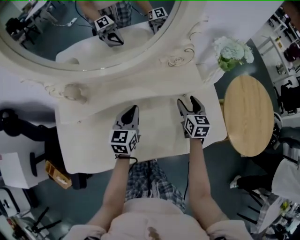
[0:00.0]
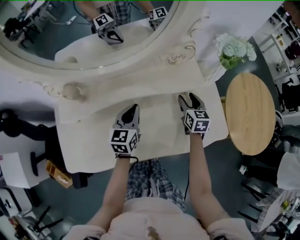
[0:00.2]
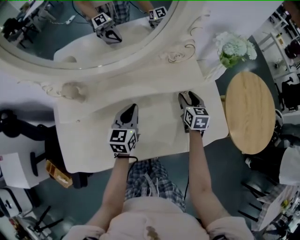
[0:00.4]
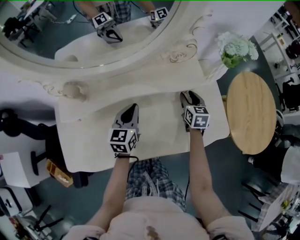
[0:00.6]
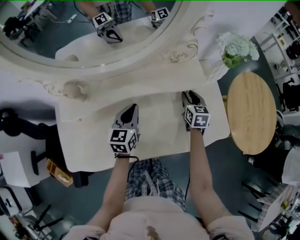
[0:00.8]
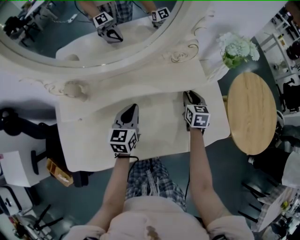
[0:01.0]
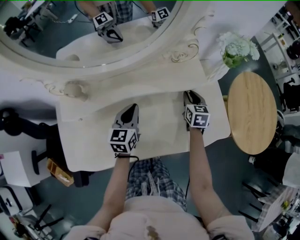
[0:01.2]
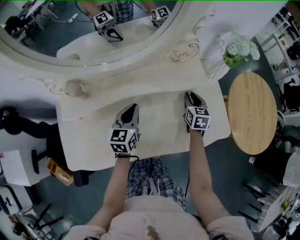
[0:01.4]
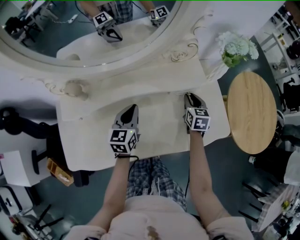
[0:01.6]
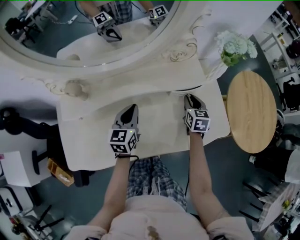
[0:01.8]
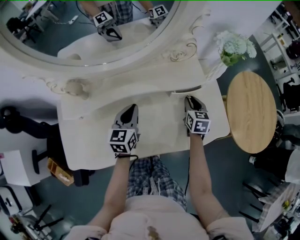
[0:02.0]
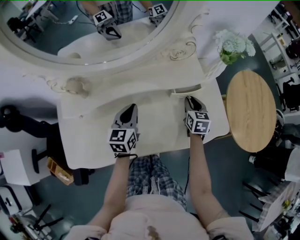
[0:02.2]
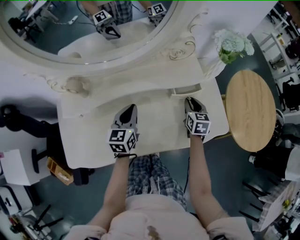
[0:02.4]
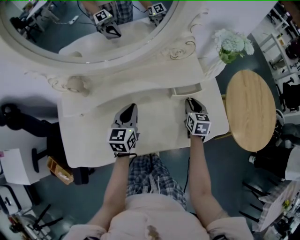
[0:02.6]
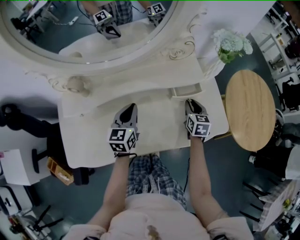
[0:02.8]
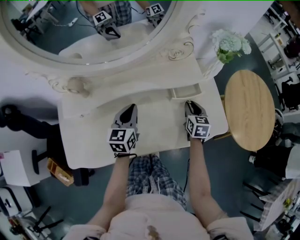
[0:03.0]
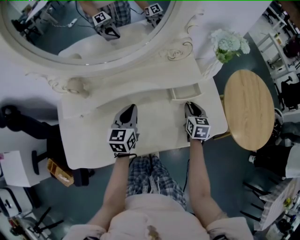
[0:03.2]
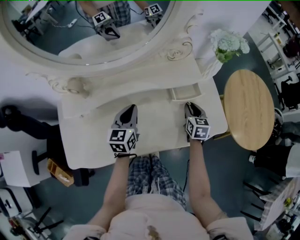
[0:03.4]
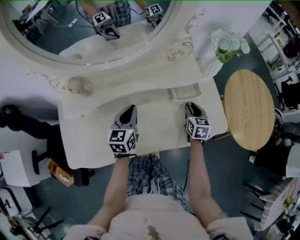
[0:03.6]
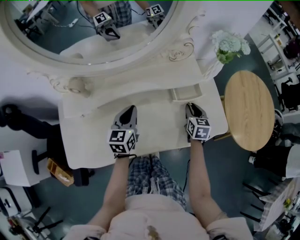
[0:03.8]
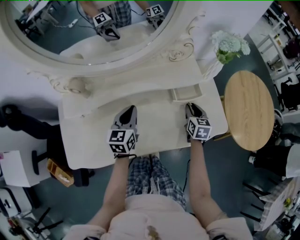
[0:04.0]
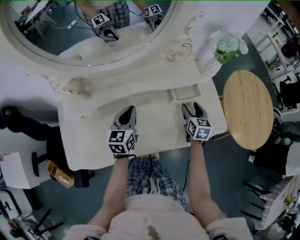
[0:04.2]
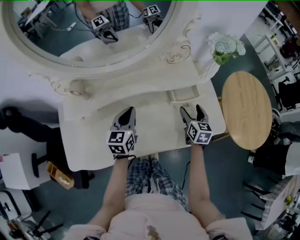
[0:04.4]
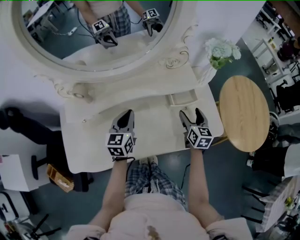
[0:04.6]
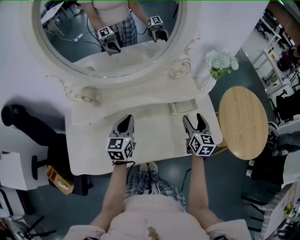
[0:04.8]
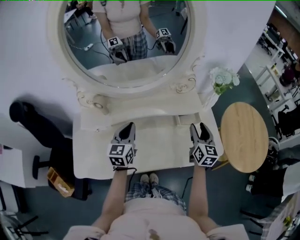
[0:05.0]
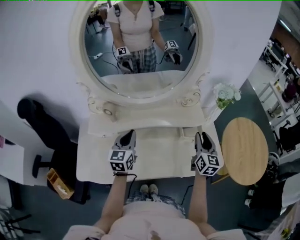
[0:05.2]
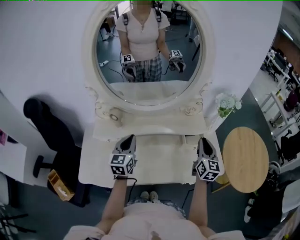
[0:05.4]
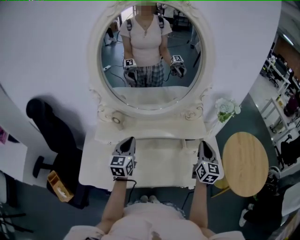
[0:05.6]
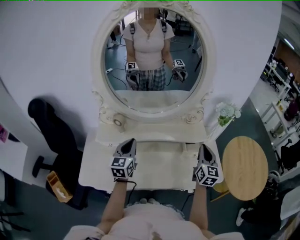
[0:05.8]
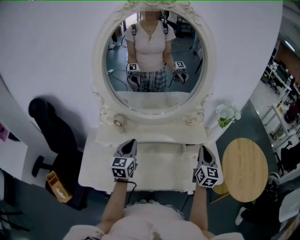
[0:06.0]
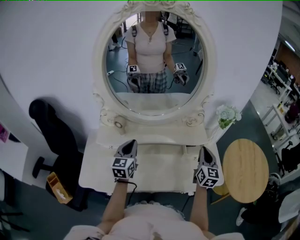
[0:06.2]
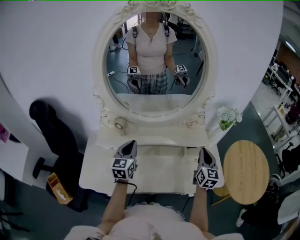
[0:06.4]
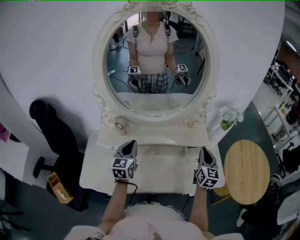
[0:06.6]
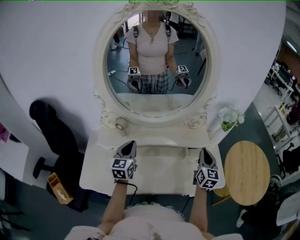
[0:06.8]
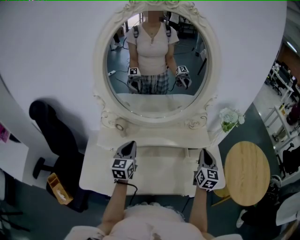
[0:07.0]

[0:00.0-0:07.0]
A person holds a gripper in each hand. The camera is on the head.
0:00.0 to 0:01.4: The right gripper closes up.
0:01.4 to 0:02.8: The right gripper shifts approximately 5 cm backward.
0:02.8 to 0:04.2: The grippers stay close to where they were, moving slightly.
0:04.2 to 0:05.6: The left gripper heads upward, to the left and backward, covering about 15 cm. The right gripper heads upward, covering roughly 20 cm, swivels approximately 30 degrees, and closes.
0:05.6 to 0:07.0: The grippers make only small movements.

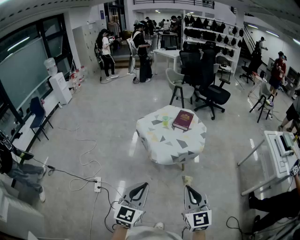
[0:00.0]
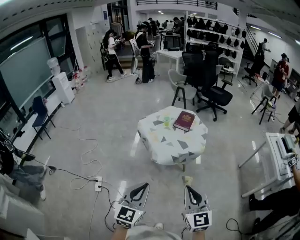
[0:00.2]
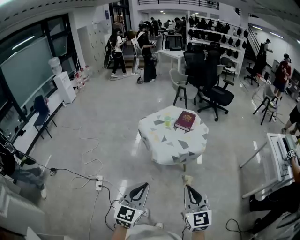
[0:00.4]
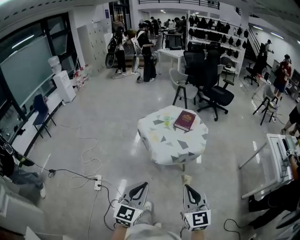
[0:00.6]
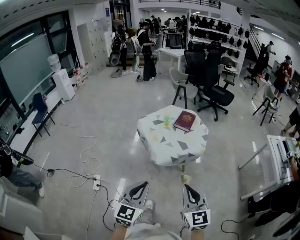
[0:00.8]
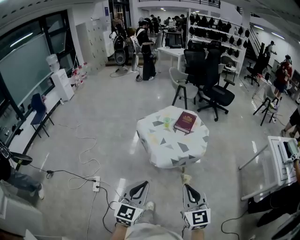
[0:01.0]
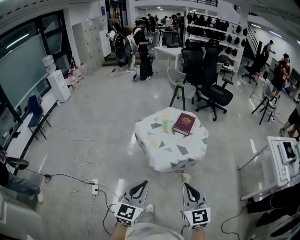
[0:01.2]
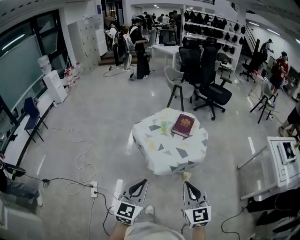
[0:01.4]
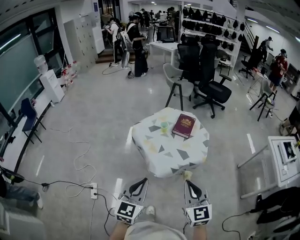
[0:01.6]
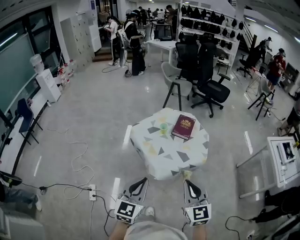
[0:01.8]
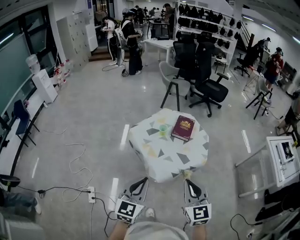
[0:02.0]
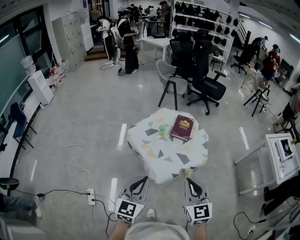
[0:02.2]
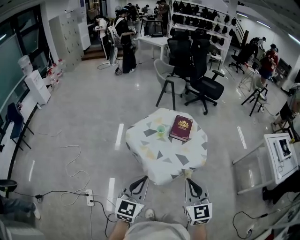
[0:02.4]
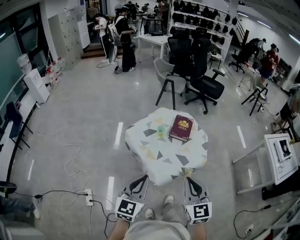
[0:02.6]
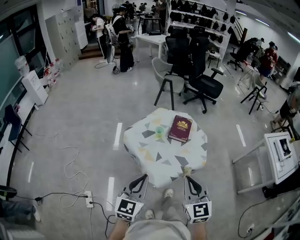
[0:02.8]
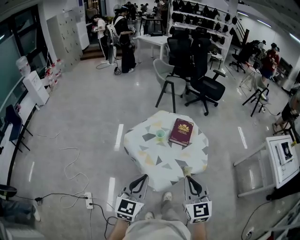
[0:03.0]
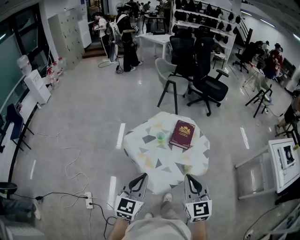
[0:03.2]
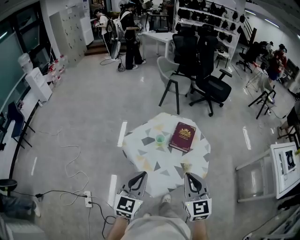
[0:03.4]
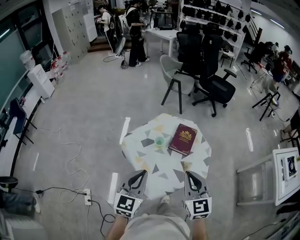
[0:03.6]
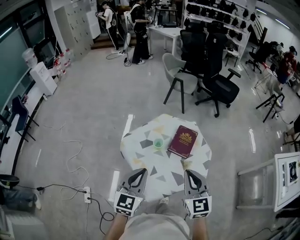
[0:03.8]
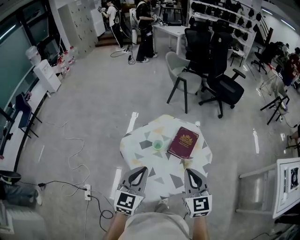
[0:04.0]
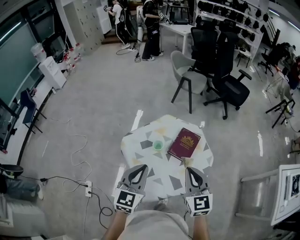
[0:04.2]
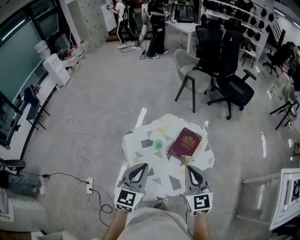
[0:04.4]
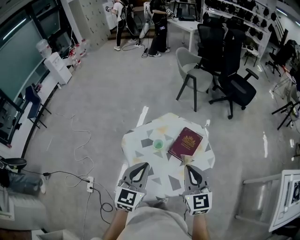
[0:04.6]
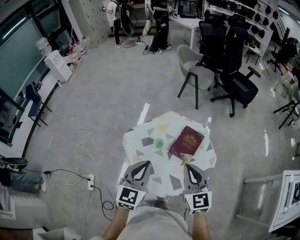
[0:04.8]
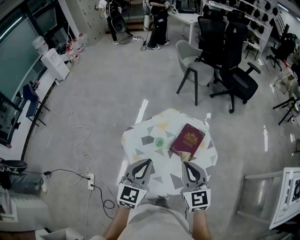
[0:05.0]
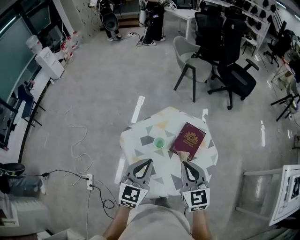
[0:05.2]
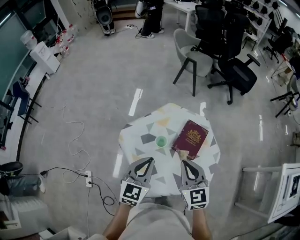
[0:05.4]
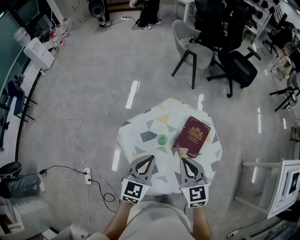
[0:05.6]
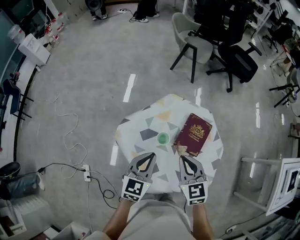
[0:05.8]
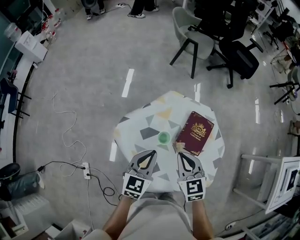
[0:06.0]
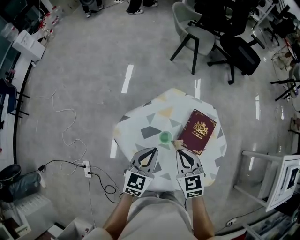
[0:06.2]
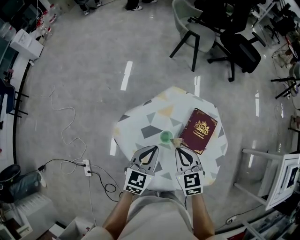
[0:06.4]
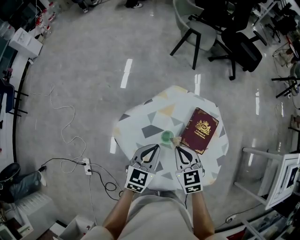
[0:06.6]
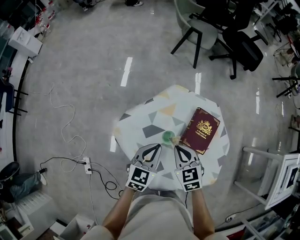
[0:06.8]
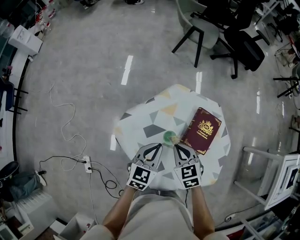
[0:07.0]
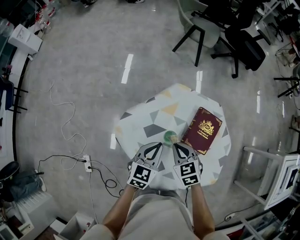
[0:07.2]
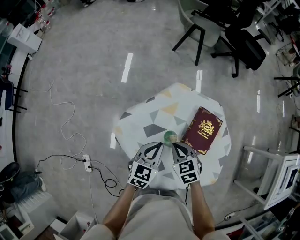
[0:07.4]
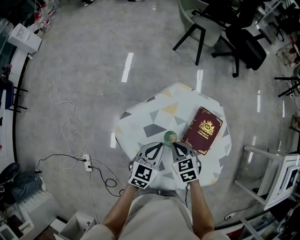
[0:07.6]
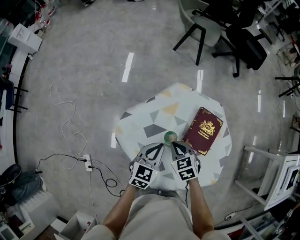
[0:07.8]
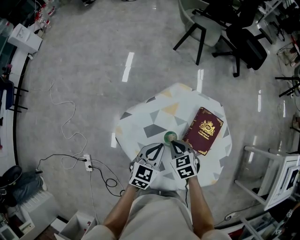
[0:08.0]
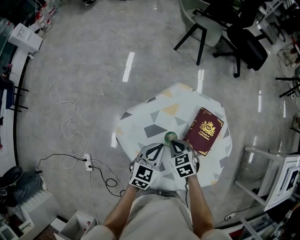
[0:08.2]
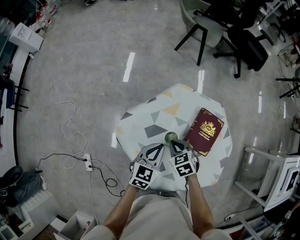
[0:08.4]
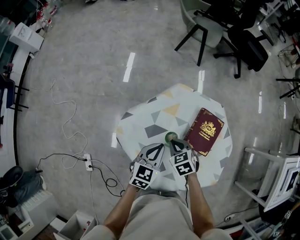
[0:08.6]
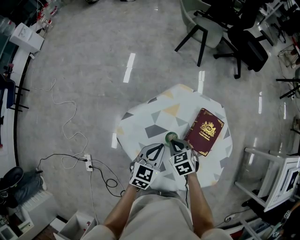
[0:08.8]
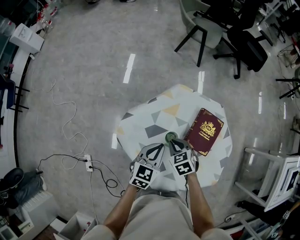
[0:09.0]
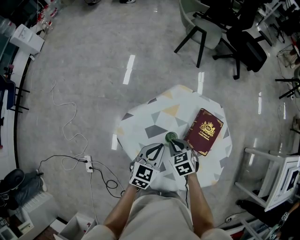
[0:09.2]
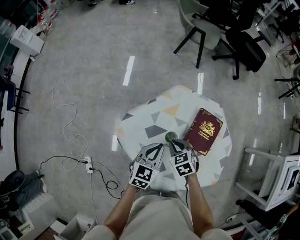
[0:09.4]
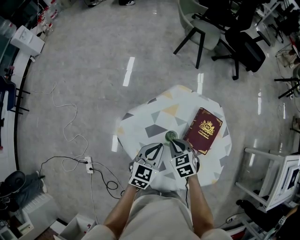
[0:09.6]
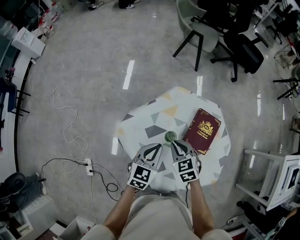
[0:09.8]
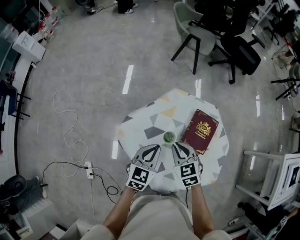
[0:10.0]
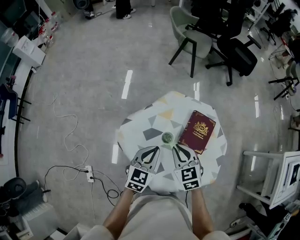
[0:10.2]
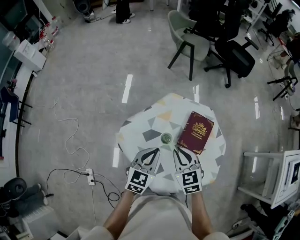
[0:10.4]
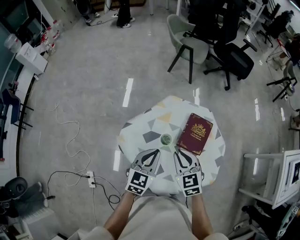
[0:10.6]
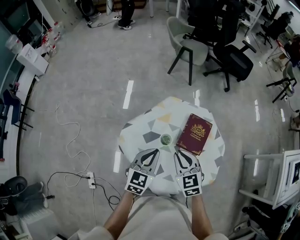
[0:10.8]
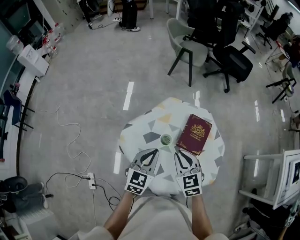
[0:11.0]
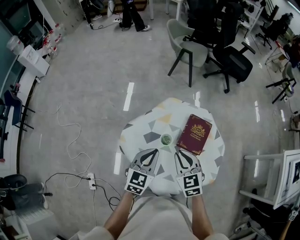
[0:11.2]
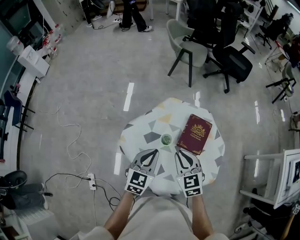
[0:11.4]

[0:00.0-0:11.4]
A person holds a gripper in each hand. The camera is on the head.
0:00.0 to 0:01.4: Both grippers move forward, some 15 cm.
0:01.4 to 0:02.8: The grippers both shift forward by roughly 15 cm.
0:02.8 to 0:04.2: Both grippers travel together forward, about 20 cm.
0:04.2 to 0:05.6: The right gripper heads downward, forward and to the left, covering roughly 15 cm; the left gripper travels downward and forward by about 15 cm.
0:05.6 to 0:07.2: The right gripper goes roughly 20 cm downward and to the left, and swivels some 20 degrees, while the left gripper heads downward and forward, covering approximately 15 cm.
0:07.2 to 0:08.6: The right gripper goes approximately 5 cm downward.
0:08.6 to 0:10.0: The left gripper shifts by about 5 cm. Meanwhile the right gripper moves upward, some 10 cm.
0:10.0 to 0:11.4: The two grippers go some 5 cm upward.

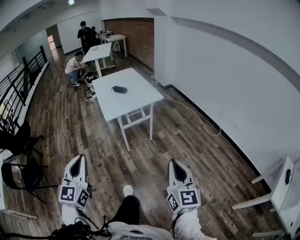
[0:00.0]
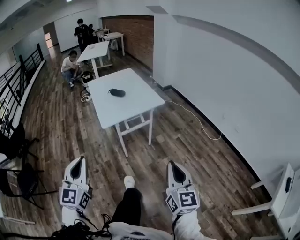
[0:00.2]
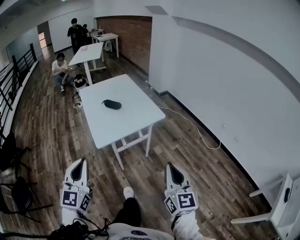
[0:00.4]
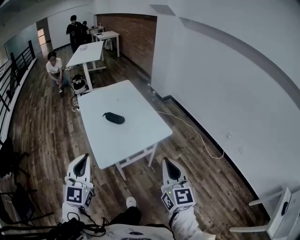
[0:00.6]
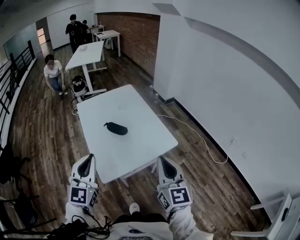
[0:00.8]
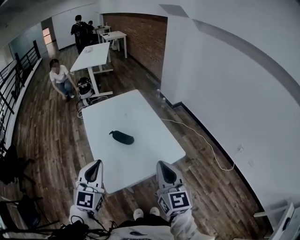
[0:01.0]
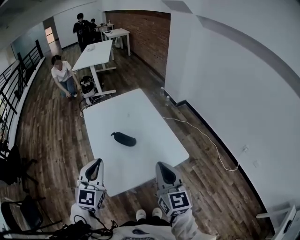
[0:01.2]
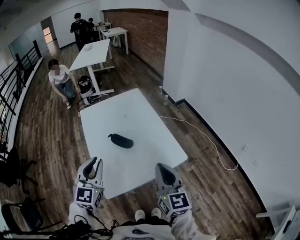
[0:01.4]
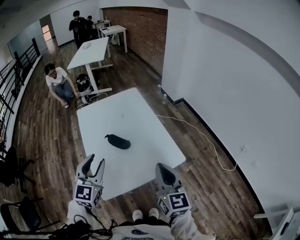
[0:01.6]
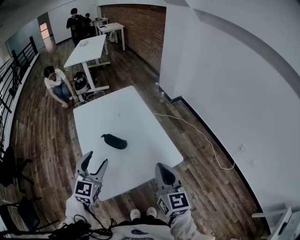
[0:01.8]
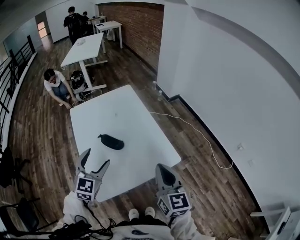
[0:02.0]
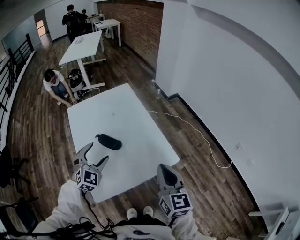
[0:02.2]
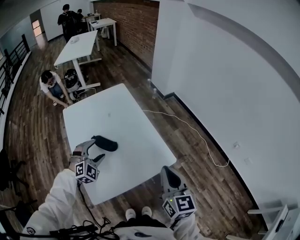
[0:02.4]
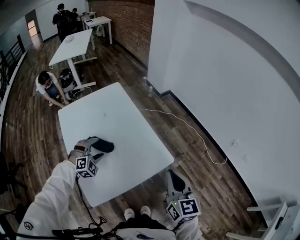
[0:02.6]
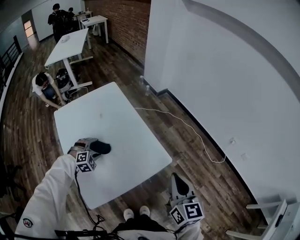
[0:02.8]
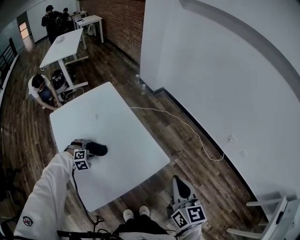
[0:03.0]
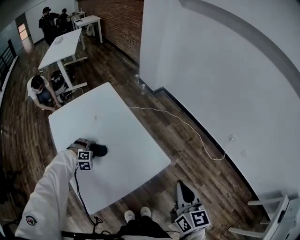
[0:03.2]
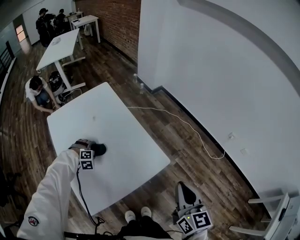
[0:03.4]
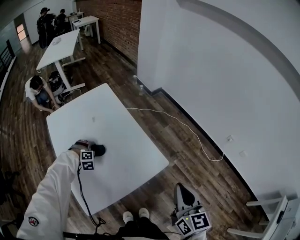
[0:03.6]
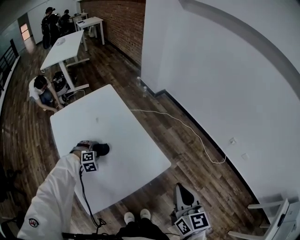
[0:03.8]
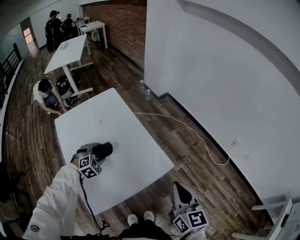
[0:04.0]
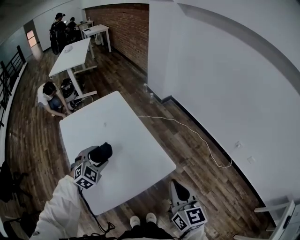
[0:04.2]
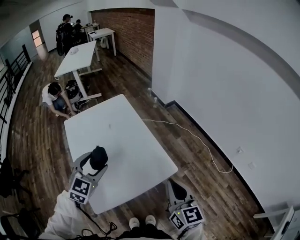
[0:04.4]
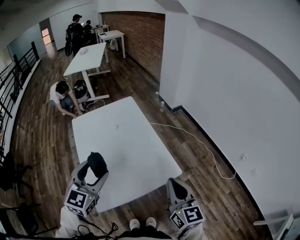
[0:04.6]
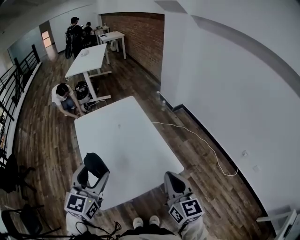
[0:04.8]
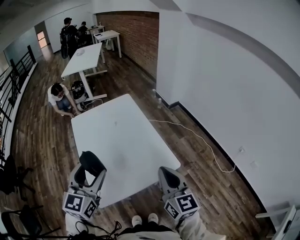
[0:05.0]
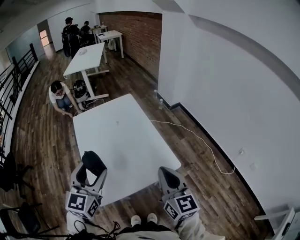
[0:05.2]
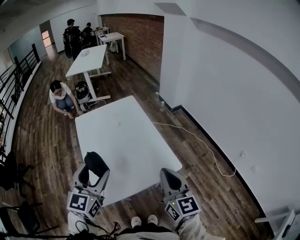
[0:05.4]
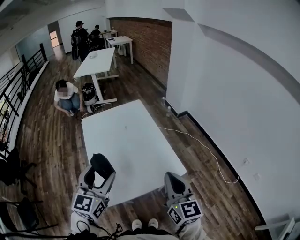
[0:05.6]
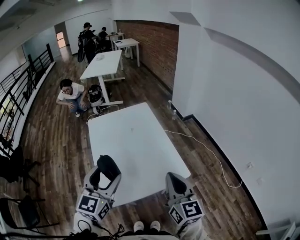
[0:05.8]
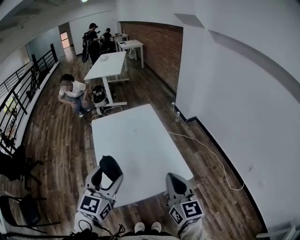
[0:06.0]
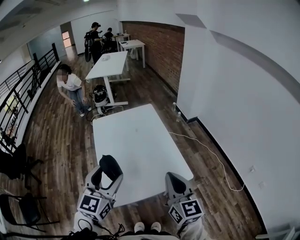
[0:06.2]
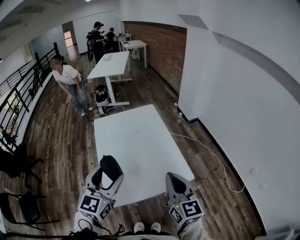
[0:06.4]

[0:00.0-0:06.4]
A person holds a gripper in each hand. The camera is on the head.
0:00.0 to 0:01.6: Both grippers are carried forward, roughly 70 cm. The left gripper opens up.
0:01.6 to 0:03.2: The right gripper goes some 15 cm to the right. The left gripper goes roughly 40 cm downward and forward, tips its fingers downward by approximately 60 degrees, and opens up.
0:03.2 to 0:04.8: The right gripper moves to the left and upward, some 10 cm. The left gripper heads upward and backward, covering roughly 40 cm, and angles its fingers upward, by some 60 degrees.
0:04.8 to 0:06.4: The right gripper changes place by some 5 cm.
